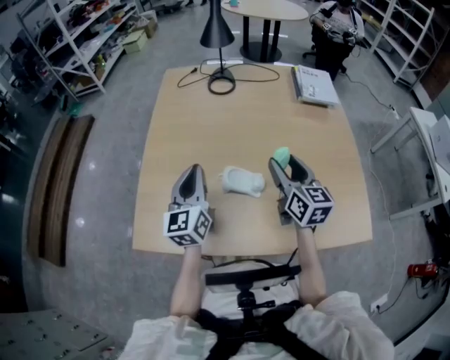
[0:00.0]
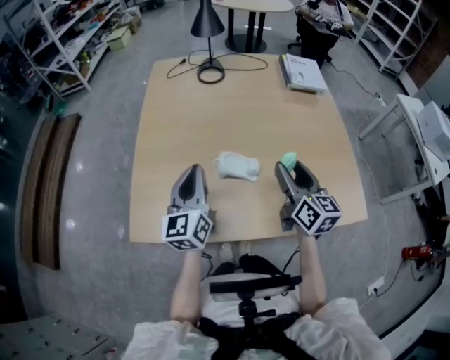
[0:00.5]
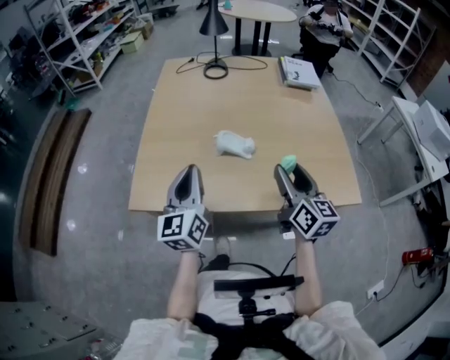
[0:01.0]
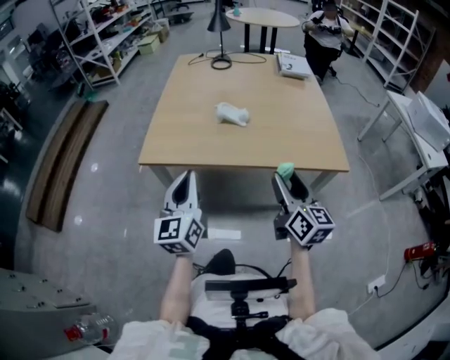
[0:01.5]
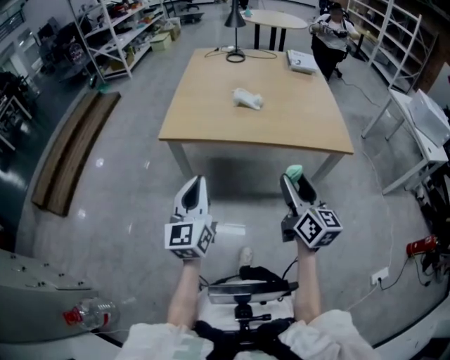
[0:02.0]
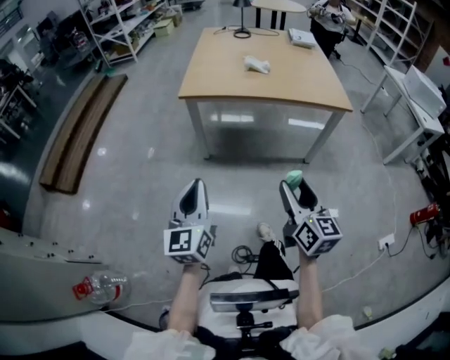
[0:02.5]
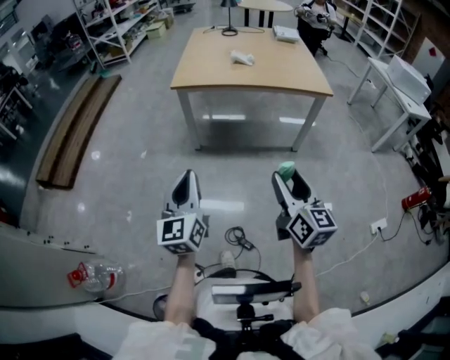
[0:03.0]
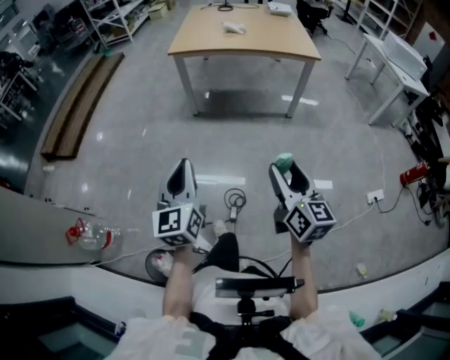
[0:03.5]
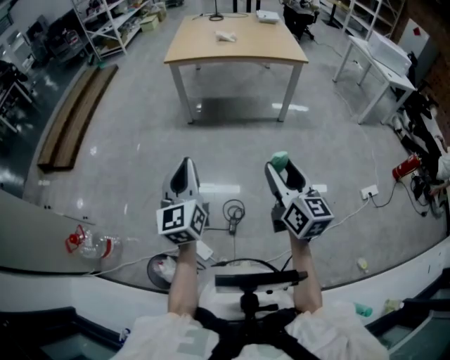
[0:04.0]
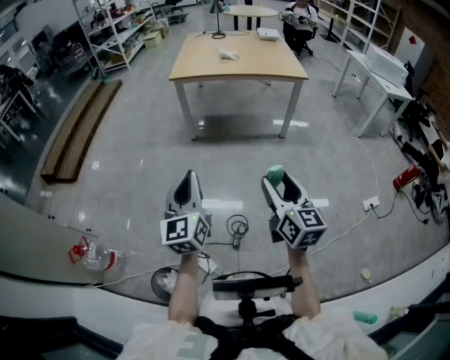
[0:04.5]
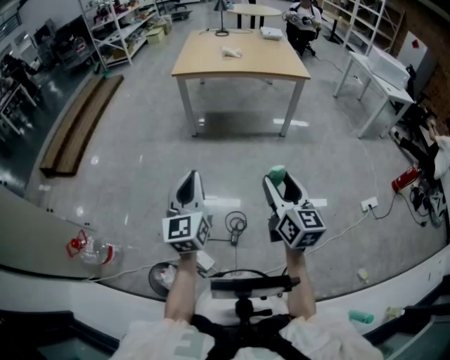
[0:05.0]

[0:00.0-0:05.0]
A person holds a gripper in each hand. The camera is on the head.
0:00.0 to 0:02.5: Both grippers are carried backward, about 90 cm.
0:02.5 to 0:05.0: Both grippers travel together backward, approximately 40 cm.

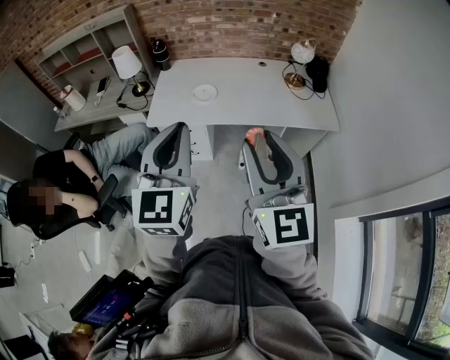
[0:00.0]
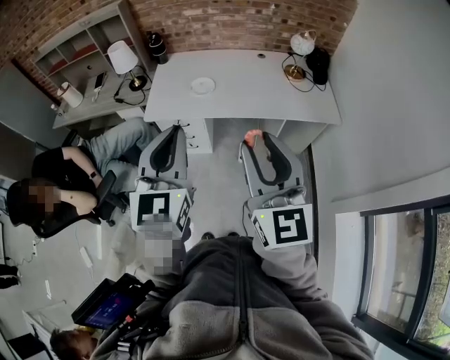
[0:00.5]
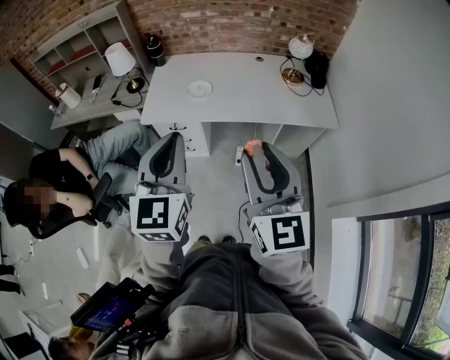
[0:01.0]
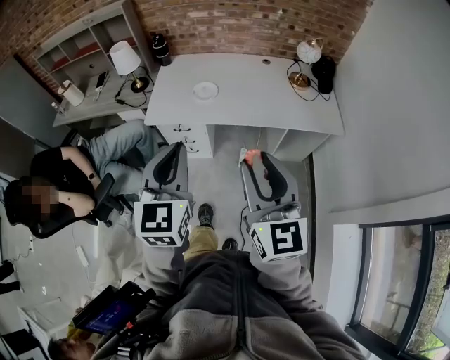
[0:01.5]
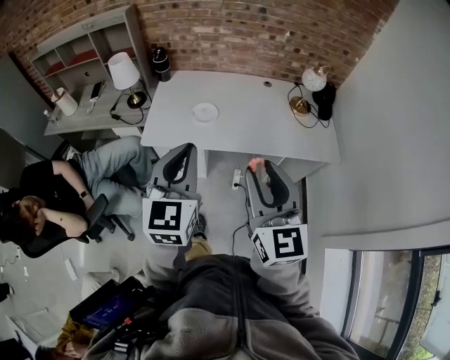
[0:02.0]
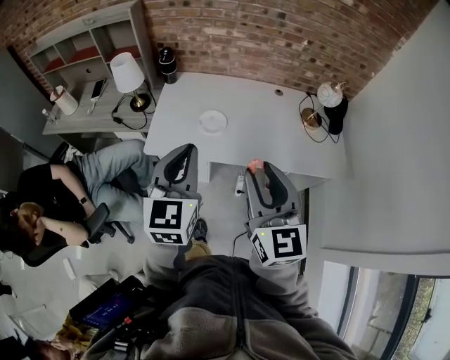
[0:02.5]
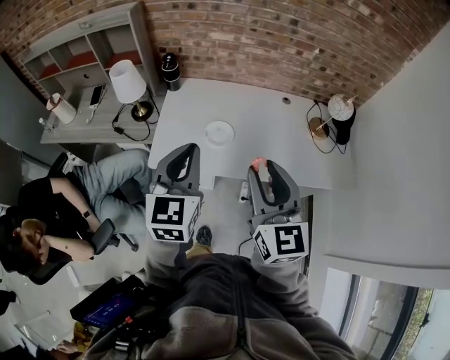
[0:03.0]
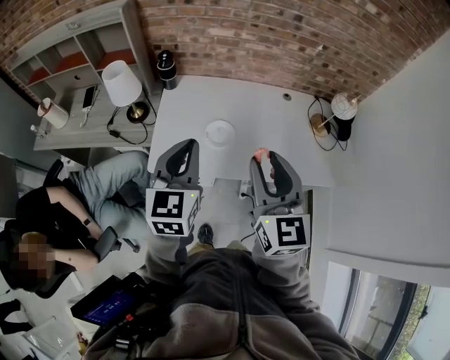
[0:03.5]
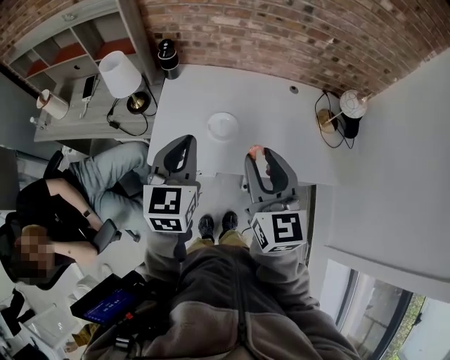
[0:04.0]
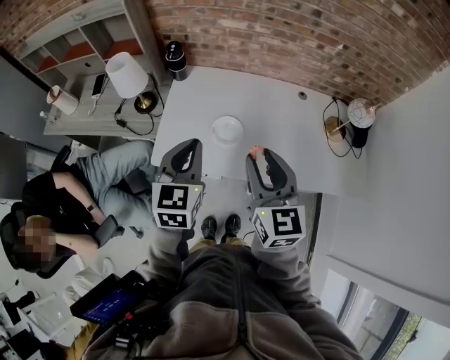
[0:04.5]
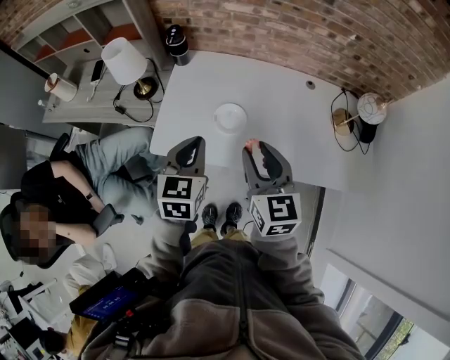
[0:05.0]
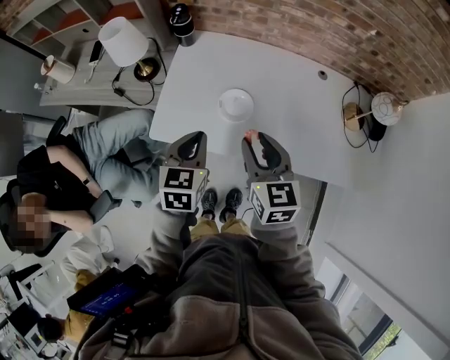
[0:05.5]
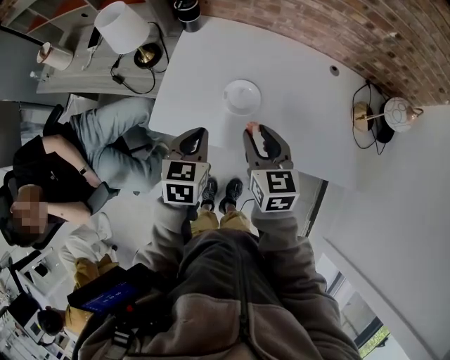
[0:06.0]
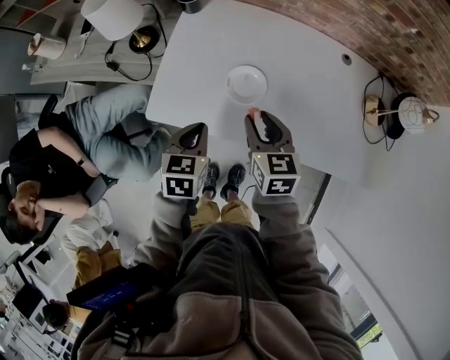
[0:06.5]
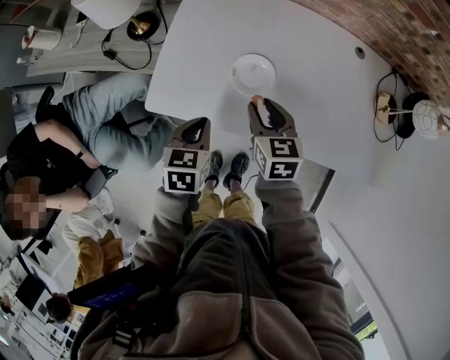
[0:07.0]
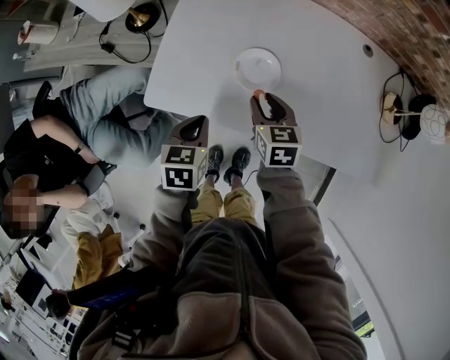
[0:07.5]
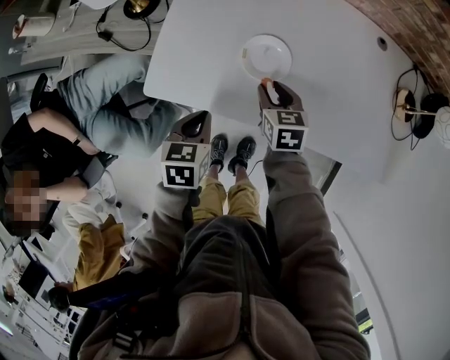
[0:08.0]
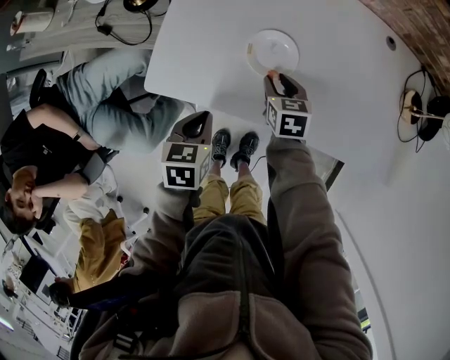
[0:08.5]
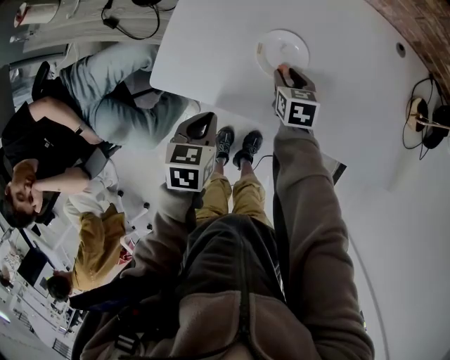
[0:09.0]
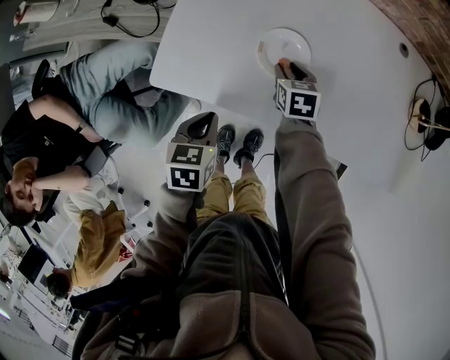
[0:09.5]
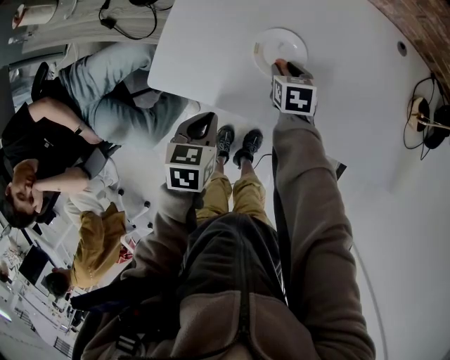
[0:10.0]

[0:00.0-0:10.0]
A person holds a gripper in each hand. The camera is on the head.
0:00.0 to 0:02.0: Both grippers travel together forward and downward, about 15 cm.
0:02.0 to 0:04.0: The grippers both shift forward by approximately 25 cm.
0:04.0 to 0:06.0: The left gripper shifts about 20 cm downward, and turns by roughly 30 degrees. Meanwhile the right gripper goes some 20 cm downward and forward, and turns by some 20 degrees.
0:06.0 to 0:08.0: The right gripper shifts about 20 cm downward. Meanwhile the left gripper goes approximately 15 cm downward.
0:08.0 to 0:10.0: The right gripper goes about 10 cm downward and forward.

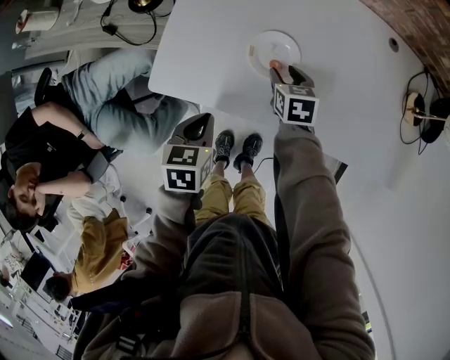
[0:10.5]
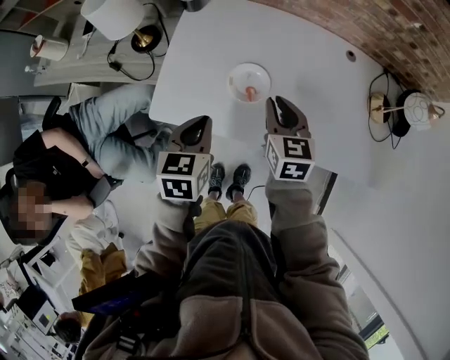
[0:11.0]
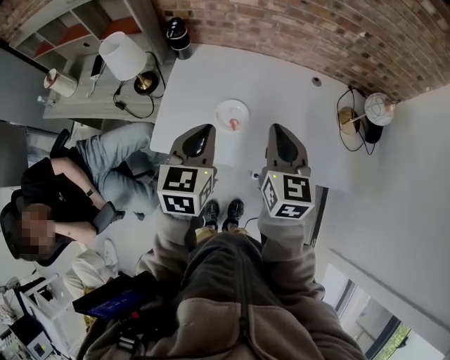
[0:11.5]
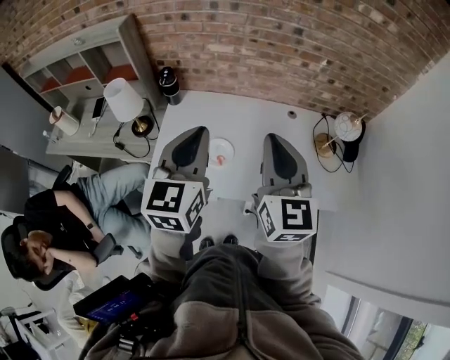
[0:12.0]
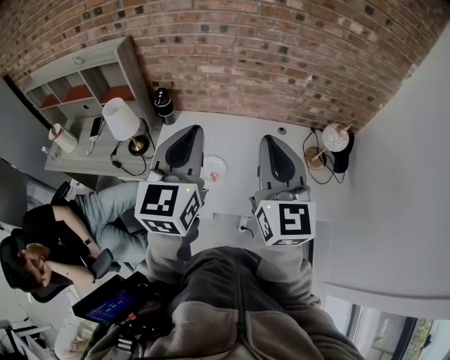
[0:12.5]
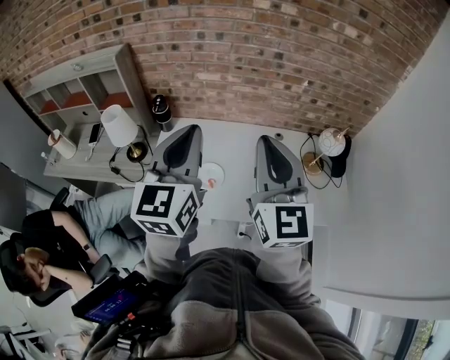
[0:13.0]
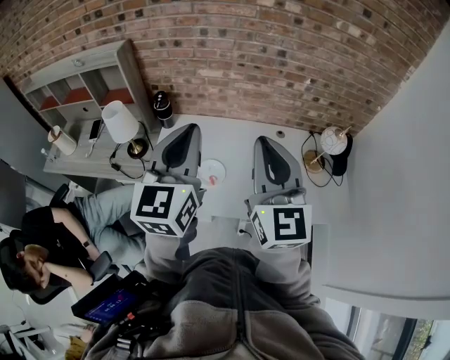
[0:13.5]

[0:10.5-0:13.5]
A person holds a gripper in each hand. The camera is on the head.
0:10.5 to 0:12.0: The grippers both shift upward by some 50 cm. The left gripper points its fingers roughly 50 degrees further upward. Meanwhile the right gripper tilts its fingers about 50 degrees upward, and closes its fingers.
0:12.0 to 0:13.5: Both grippers move upward, about 5 cm.

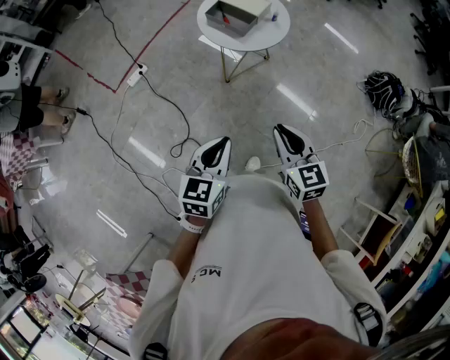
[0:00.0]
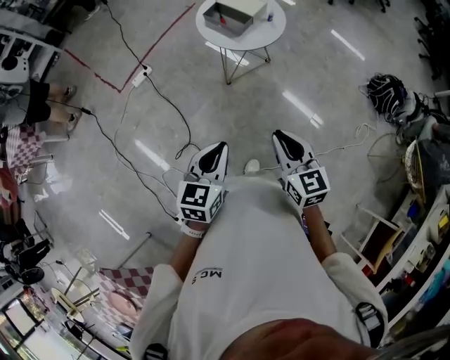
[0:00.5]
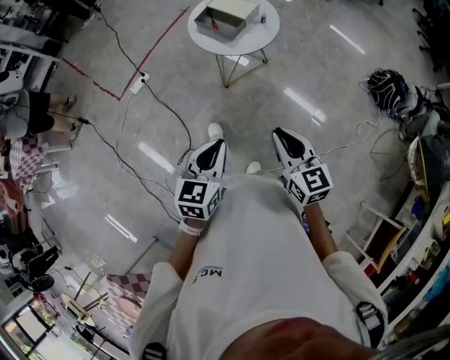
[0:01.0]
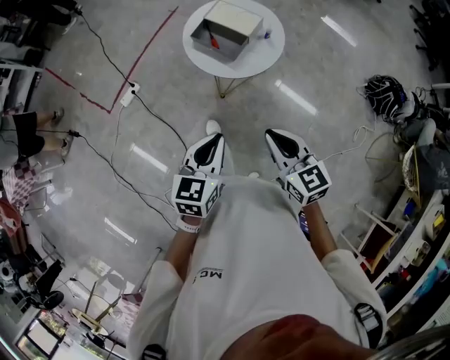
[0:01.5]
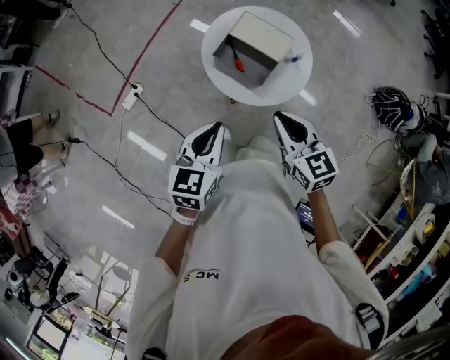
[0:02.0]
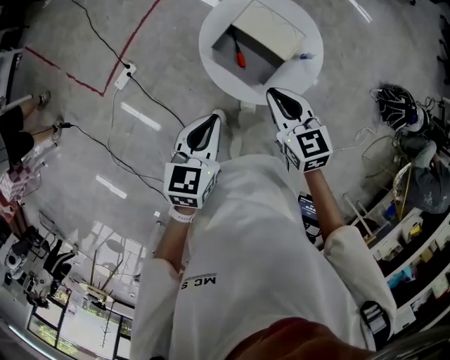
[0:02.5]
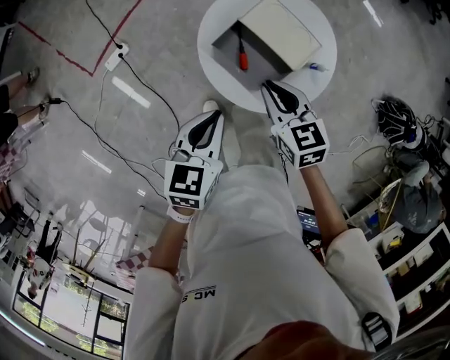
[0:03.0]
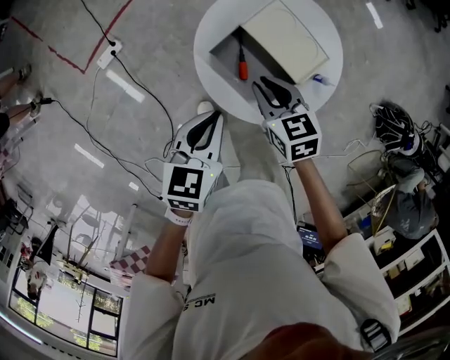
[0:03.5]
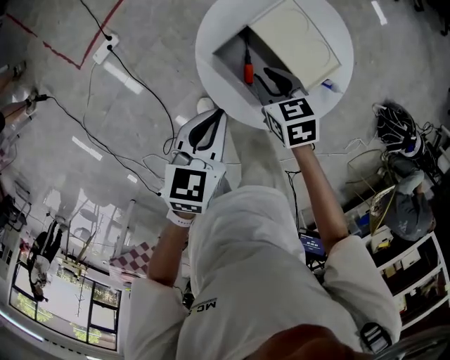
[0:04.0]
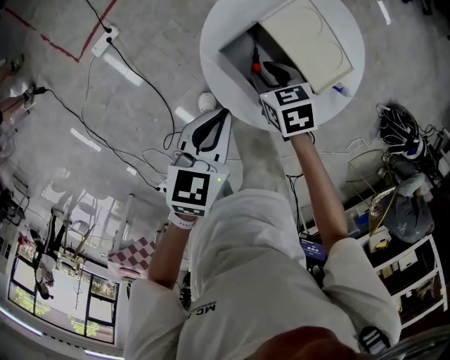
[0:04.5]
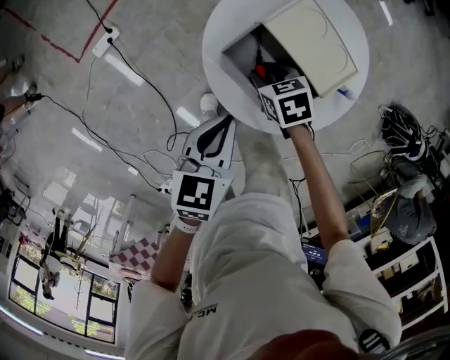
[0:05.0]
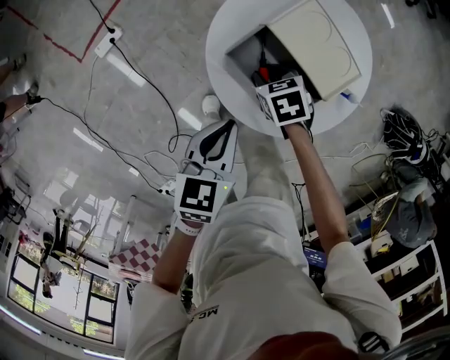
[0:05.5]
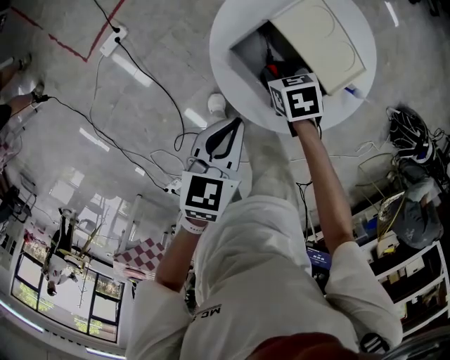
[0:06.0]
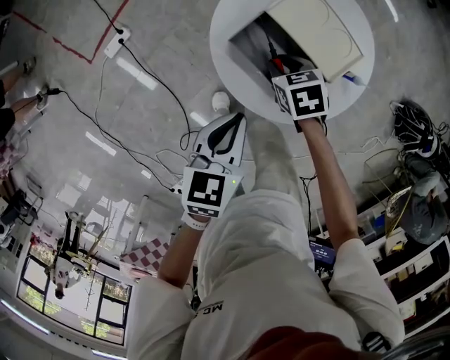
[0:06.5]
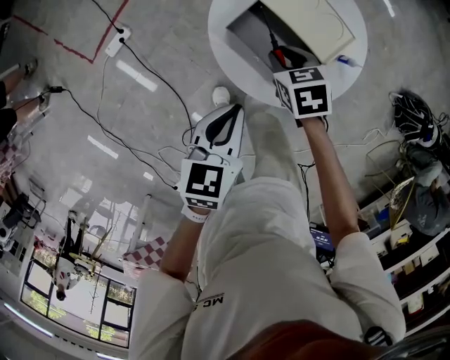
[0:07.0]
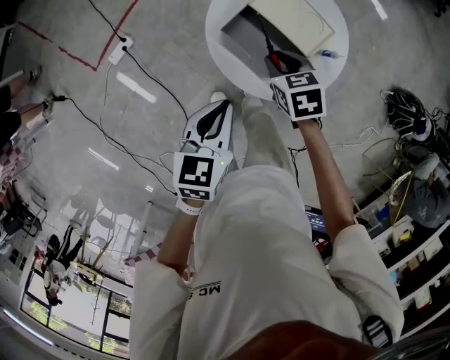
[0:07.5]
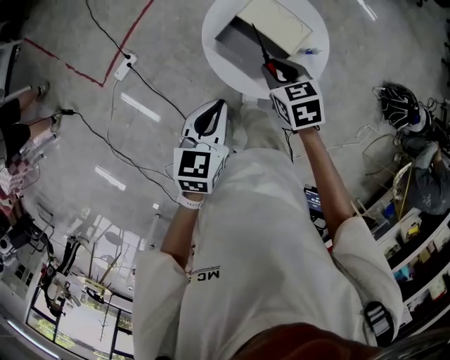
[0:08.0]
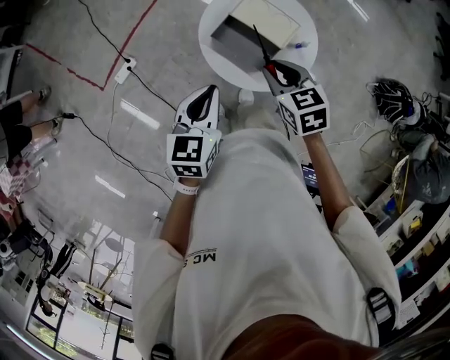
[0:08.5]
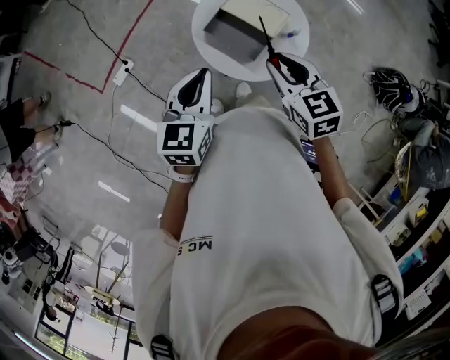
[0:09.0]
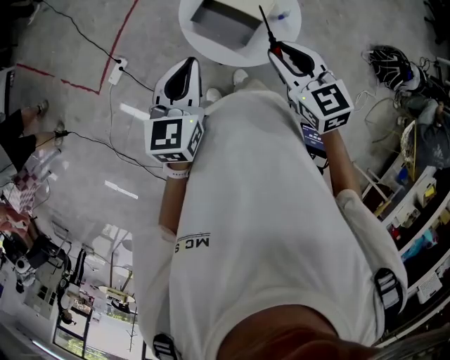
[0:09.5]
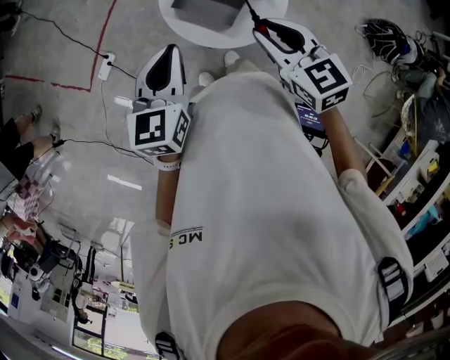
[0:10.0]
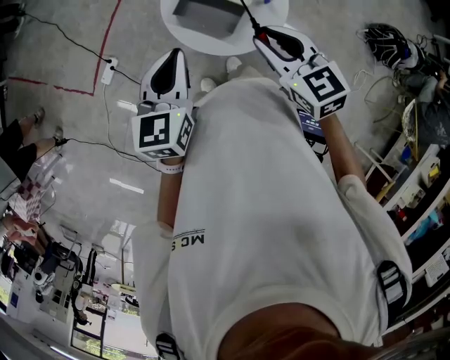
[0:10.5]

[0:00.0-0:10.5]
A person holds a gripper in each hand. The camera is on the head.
0:00.0 to 0:02.0: The two grippers go approximately 40 cm forward.
0:02.0 to 0:04.0: The grippers both shift downward and forward by approximately 30 cm. The right gripper turns by some 30 degrees.
0:04.0 to 0:06.5: The right gripper heads downward, covering about 5 cm.
0:06.5 to 0:08.5: The left gripper travels upward by some 15 cm. The right gripper is displaced upward by some 25 cm, and swivels roughly 20 degrees.
0:08.5 to 0:10.5: The right gripper shifts about 10 cm upward and backward. Meanwhile the left gripper heads upward, covering approximately 5 cm.
